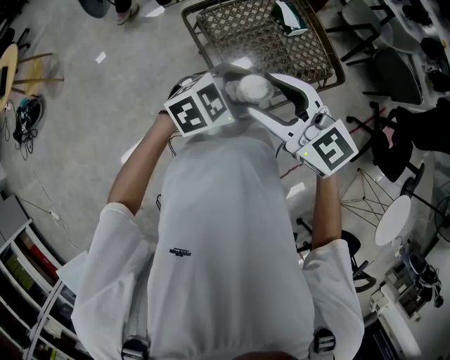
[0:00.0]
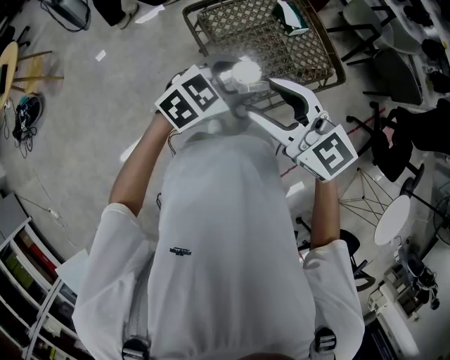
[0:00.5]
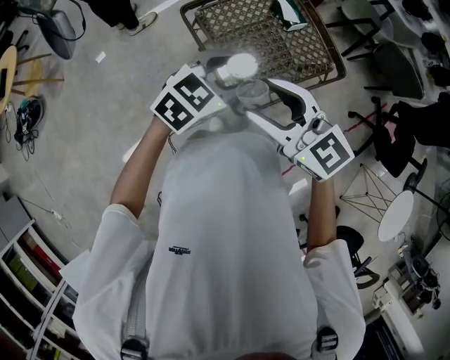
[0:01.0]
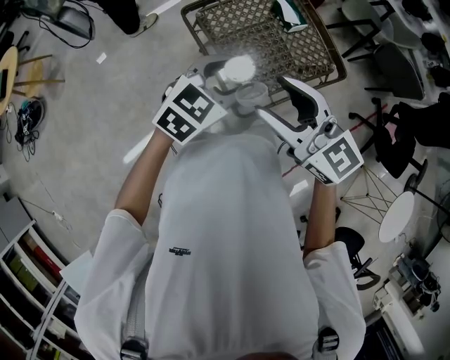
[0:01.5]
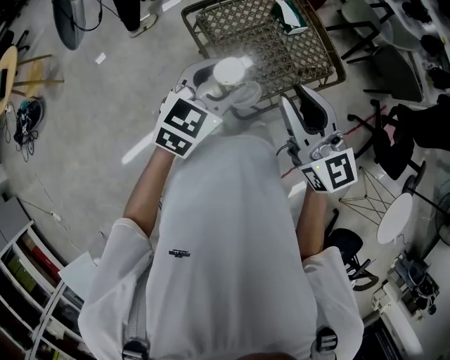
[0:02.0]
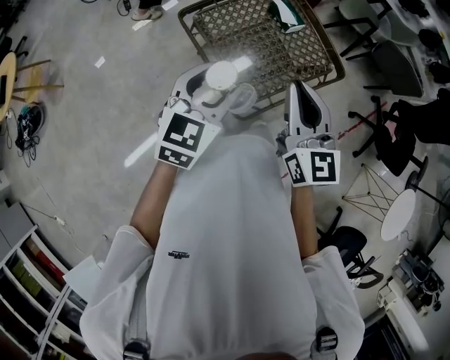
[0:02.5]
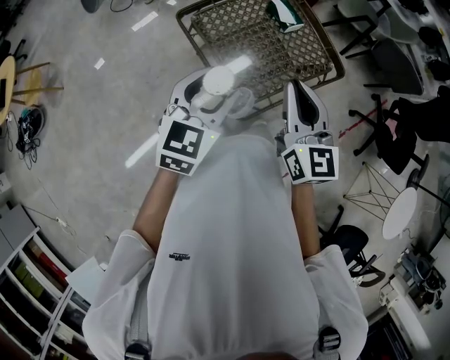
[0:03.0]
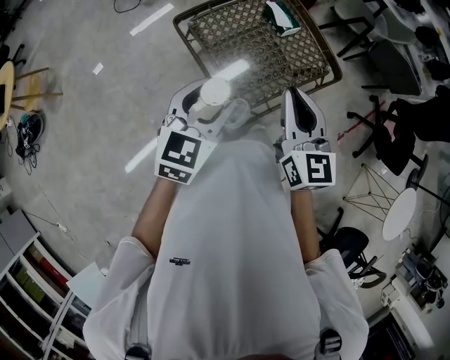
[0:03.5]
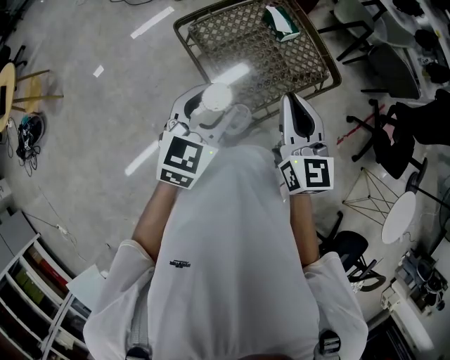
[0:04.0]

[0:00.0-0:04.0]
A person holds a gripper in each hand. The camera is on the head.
0:00.0 to 0:02.0: The right gripper changes place by some 5 cm, swivels roughly 30 degrees, and closes. Meanwhile the left gripper moves approximately 10 cm, and swivels about 30 degrees.
0:02.0 to 0:04.0: The right gripper changes place by about 5 cm, rotates approximately 20 degrees, and closes up.

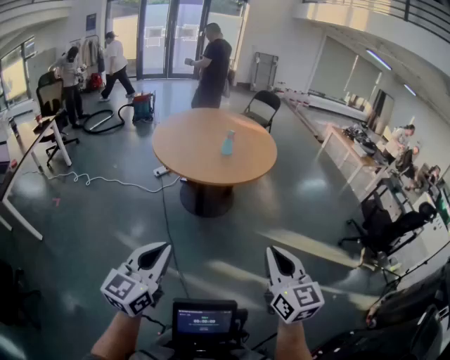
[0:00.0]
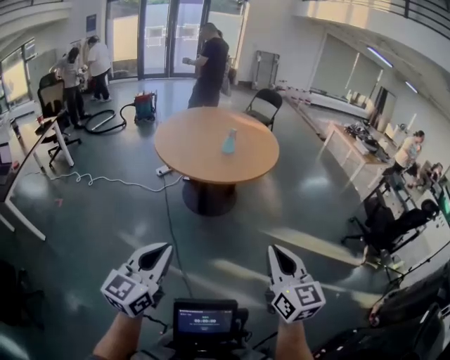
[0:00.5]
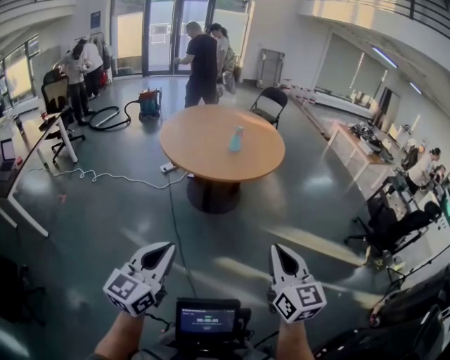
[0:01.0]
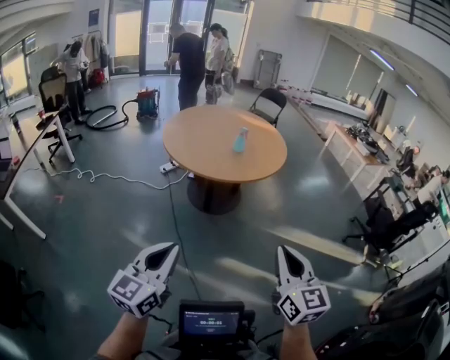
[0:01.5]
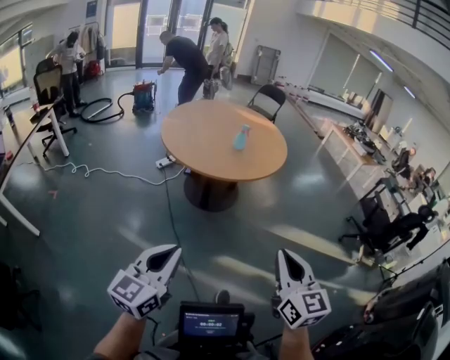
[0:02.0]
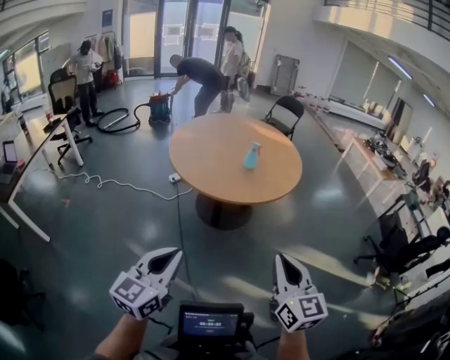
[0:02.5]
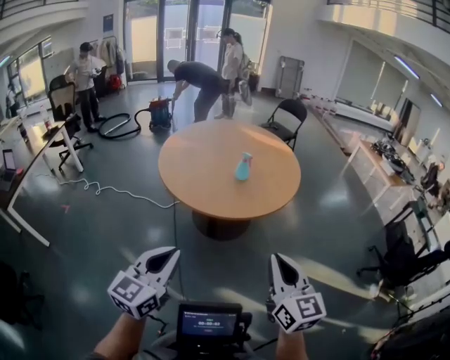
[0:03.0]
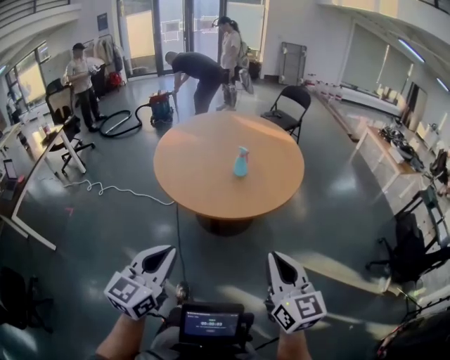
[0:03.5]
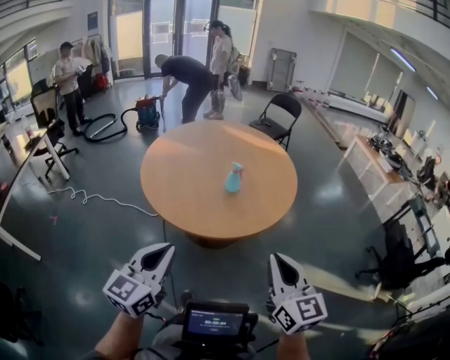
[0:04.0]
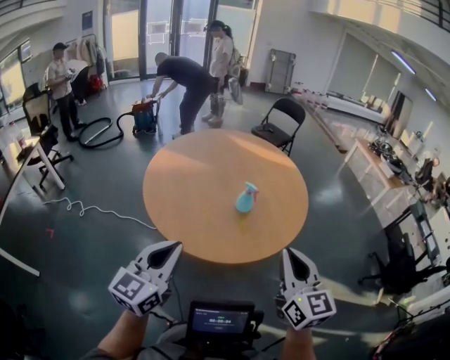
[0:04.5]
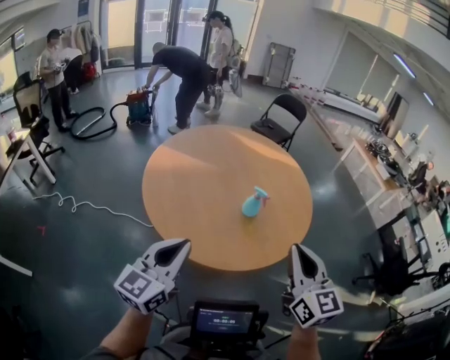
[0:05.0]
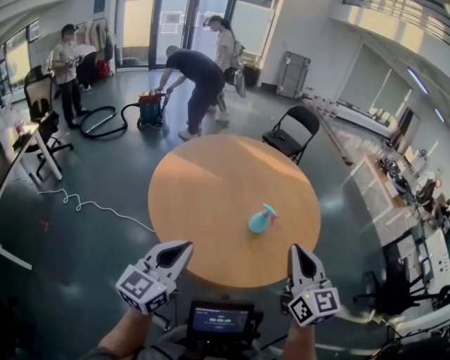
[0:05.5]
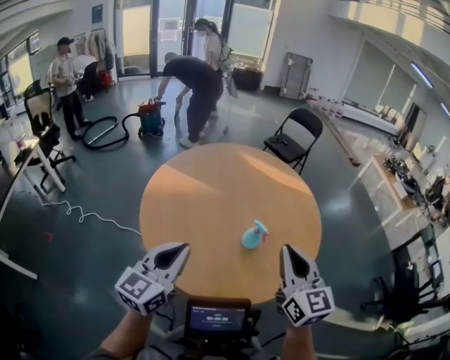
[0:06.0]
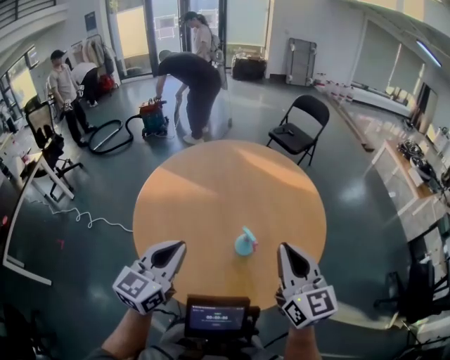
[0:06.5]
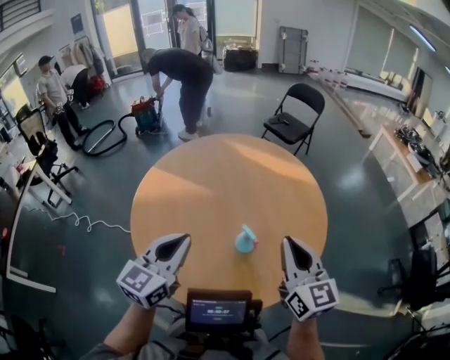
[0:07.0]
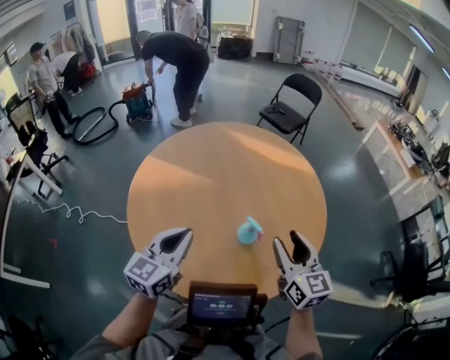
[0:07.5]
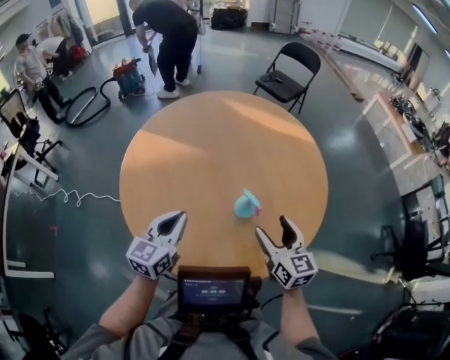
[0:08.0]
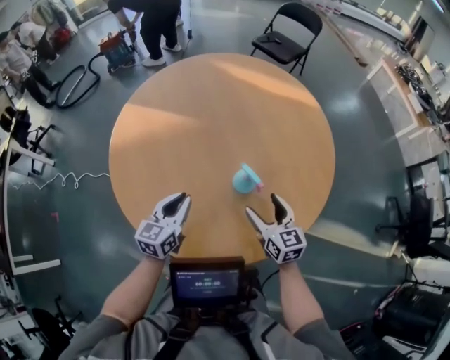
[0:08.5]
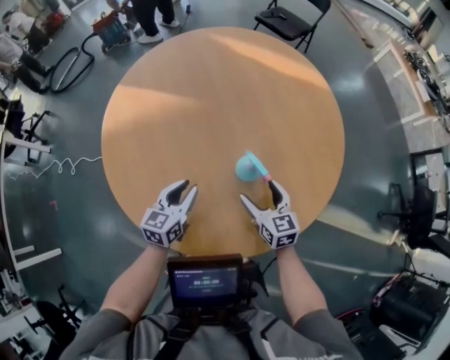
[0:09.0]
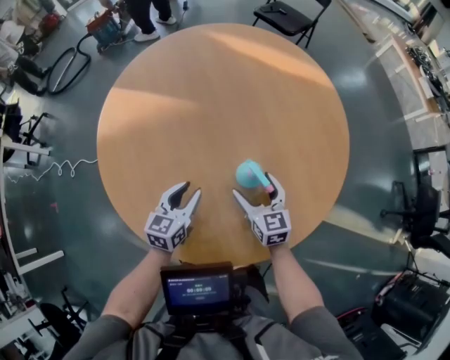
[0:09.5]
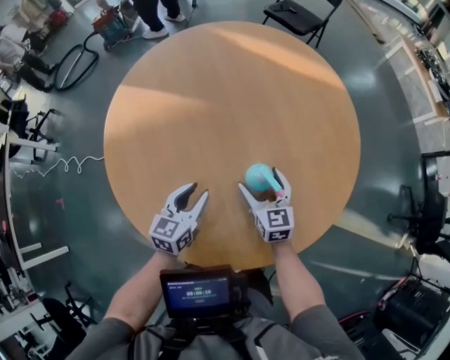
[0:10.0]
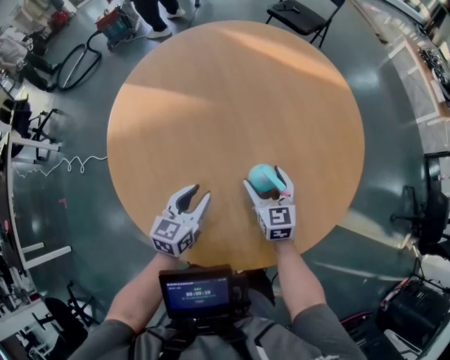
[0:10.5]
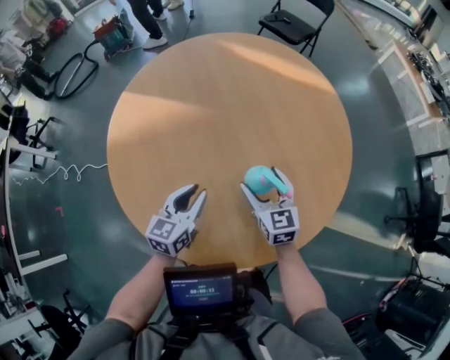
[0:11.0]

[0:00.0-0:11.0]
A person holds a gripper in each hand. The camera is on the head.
0:00.0 to 0:02.0: The two grippers go about 5 cm to the left.
0:02.0 to 0:03.5: Both grippers move forward, about 25 cm.
0:03.5 to 0:05.5: The two grippers go approximately 30 cm forward and to the left.
0:05.5 to 0:07.5: The left gripper moves forward, about 15 cm. The right gripper is displaced forward, downward and to the right by some 20 cm, and opens.
0:07.5 to 0:09.0: Both grippers travel together downward, about 20 cm. The right gripper opens; the left gripper opens up.
0:09.0 to 0:11.0: The right gripper goes roughly 5 cm forward.

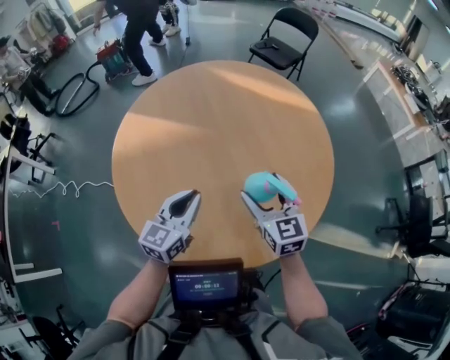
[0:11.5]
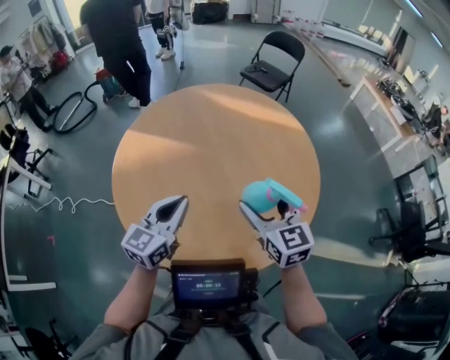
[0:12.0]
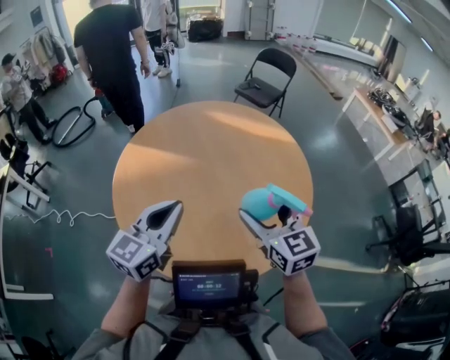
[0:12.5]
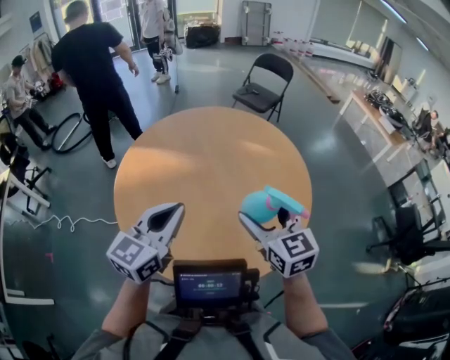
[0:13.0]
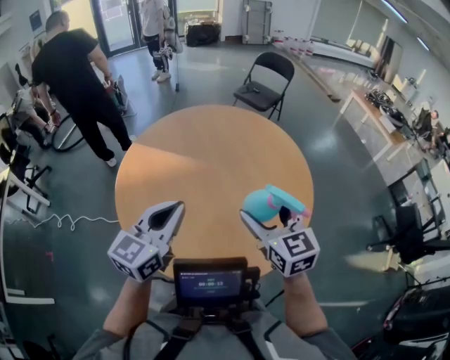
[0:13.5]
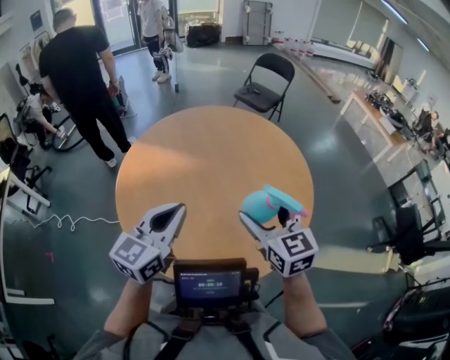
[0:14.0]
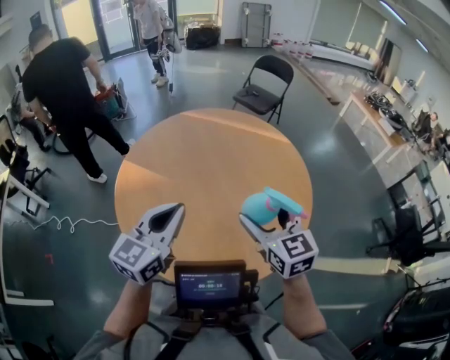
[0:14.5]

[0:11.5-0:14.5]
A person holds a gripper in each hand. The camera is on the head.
0:11.5 to 0:13.0: Both grippers travel together upward, about 15 cm.
0:13.0 to 0:14.5: Both grippers stay about where they are.

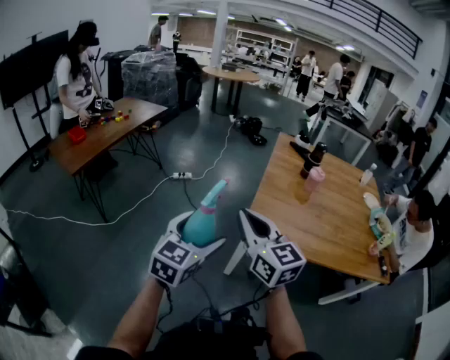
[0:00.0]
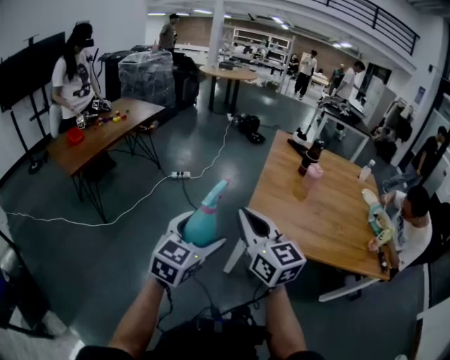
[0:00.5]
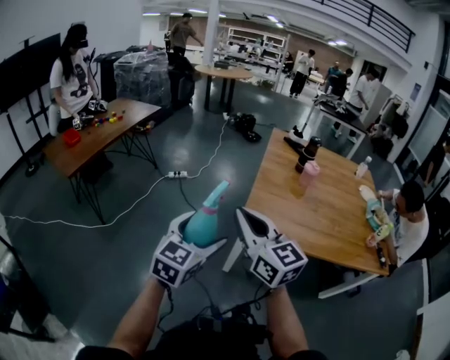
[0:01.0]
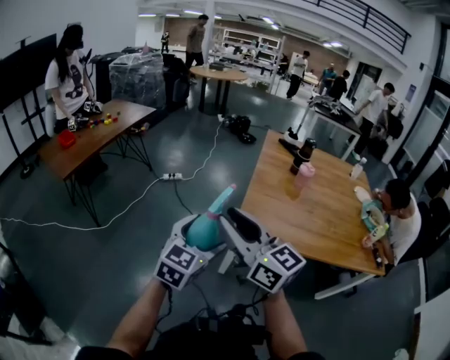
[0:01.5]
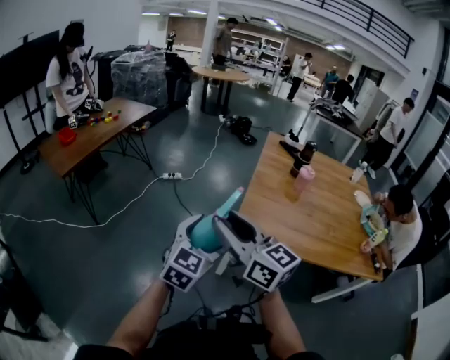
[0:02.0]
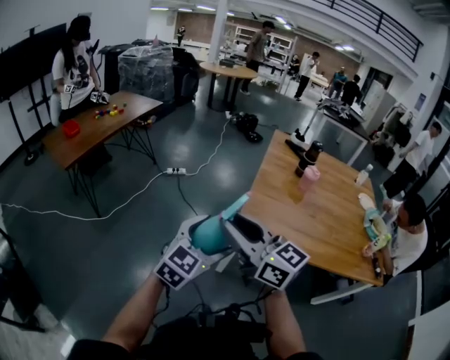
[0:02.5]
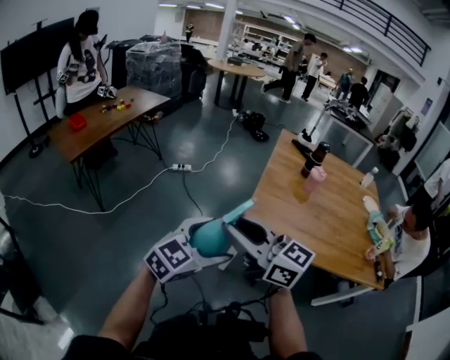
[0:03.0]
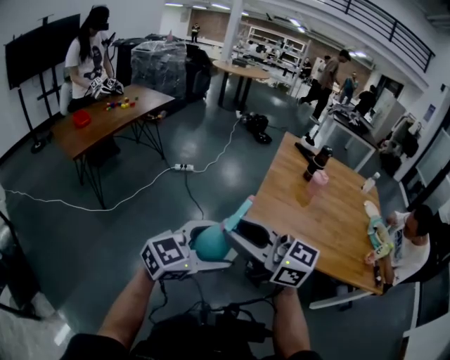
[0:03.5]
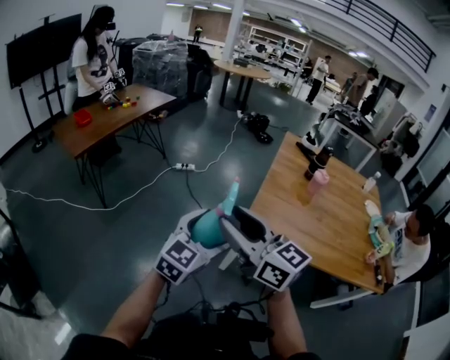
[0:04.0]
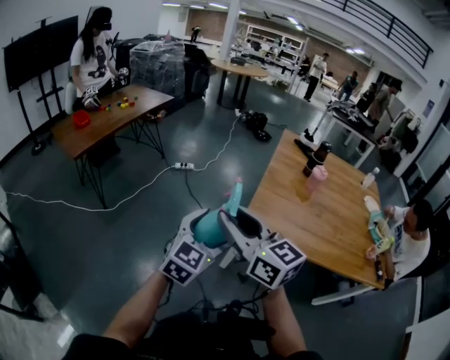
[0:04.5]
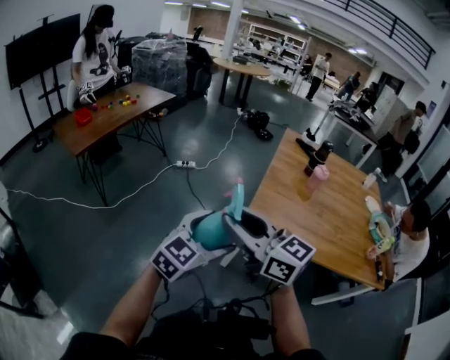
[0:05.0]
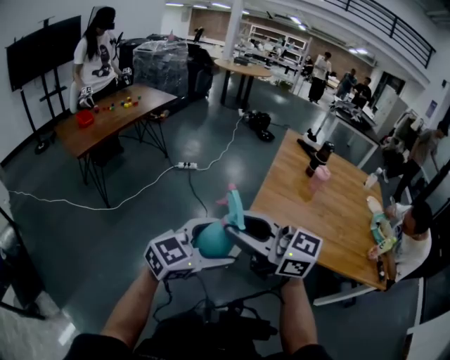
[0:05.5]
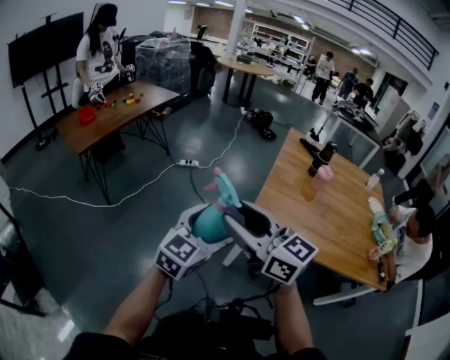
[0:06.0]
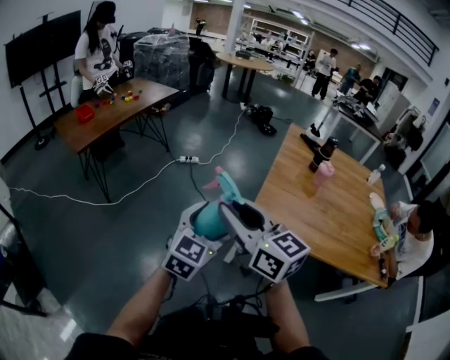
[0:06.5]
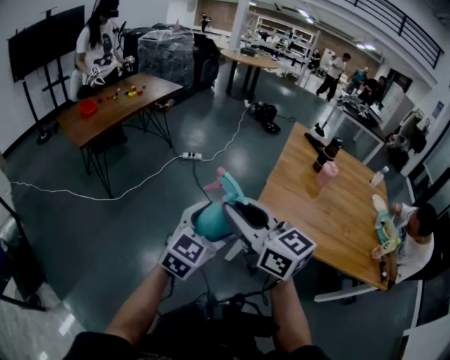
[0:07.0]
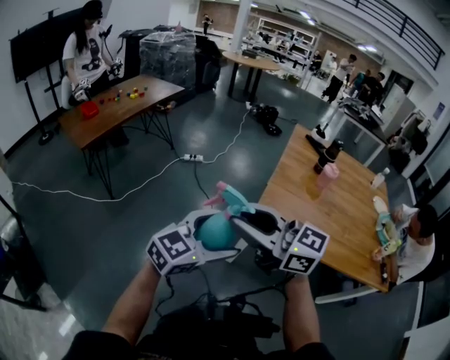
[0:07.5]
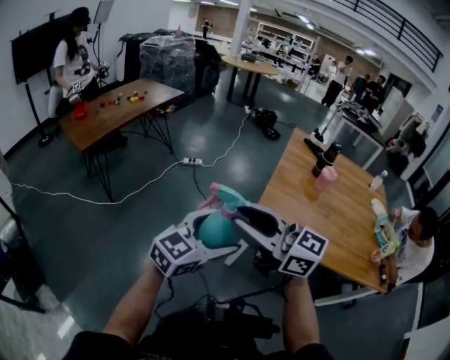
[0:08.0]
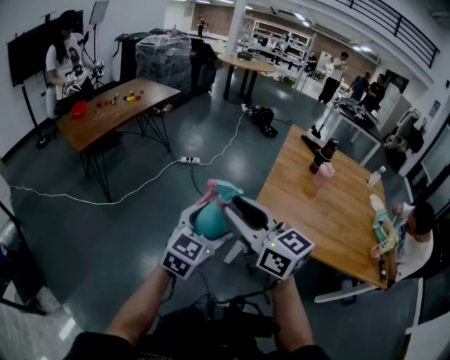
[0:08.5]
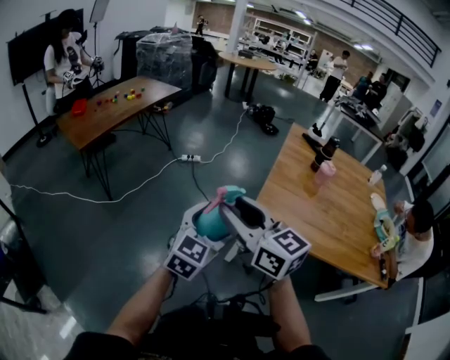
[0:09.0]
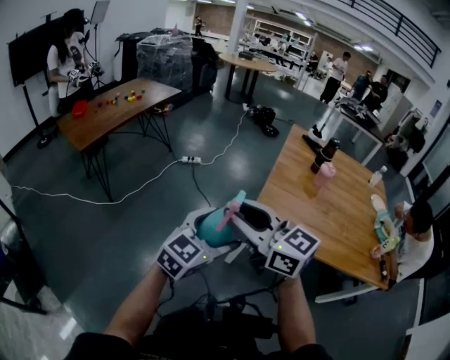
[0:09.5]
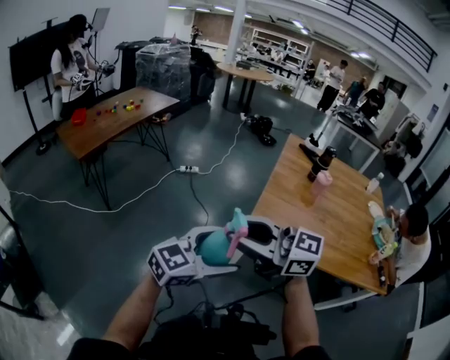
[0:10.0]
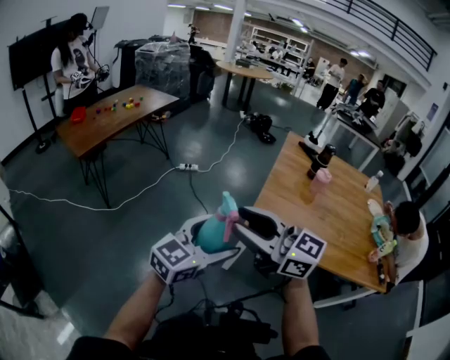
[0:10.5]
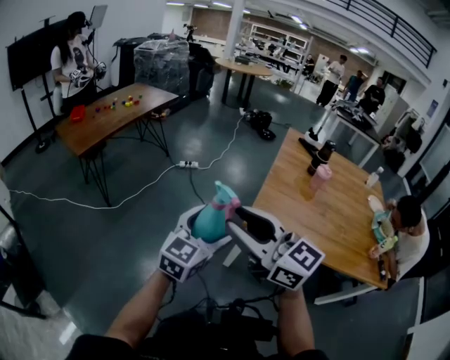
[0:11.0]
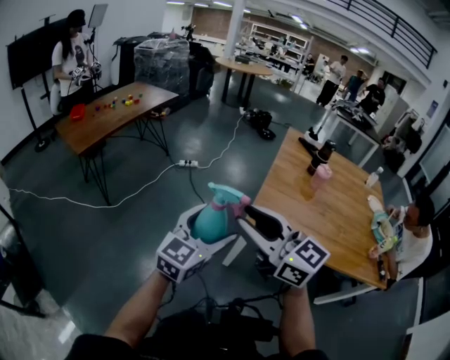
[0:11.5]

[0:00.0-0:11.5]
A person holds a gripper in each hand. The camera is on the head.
0:00.0 to 0:02.0: The left gripper ends up approximately 5 cm from where it was; the right gripper opens.
0:06.0 to 0:07.5: The grippers stay close to where they were, moving slightly.
